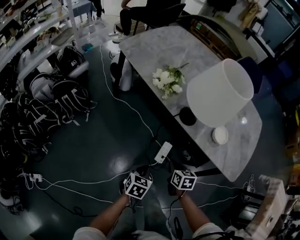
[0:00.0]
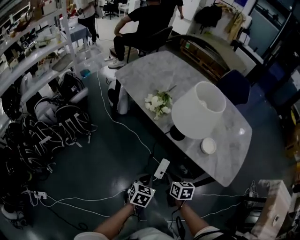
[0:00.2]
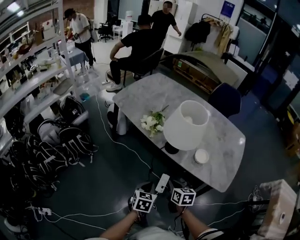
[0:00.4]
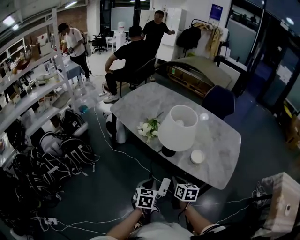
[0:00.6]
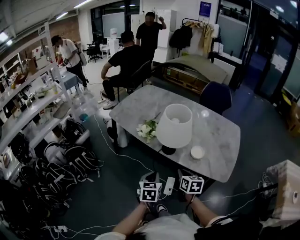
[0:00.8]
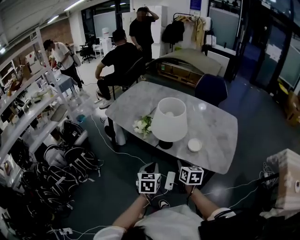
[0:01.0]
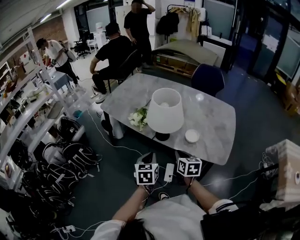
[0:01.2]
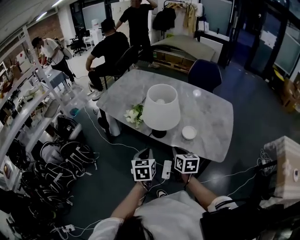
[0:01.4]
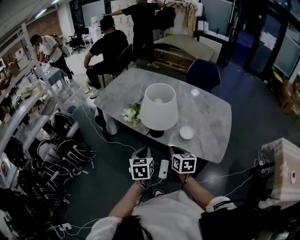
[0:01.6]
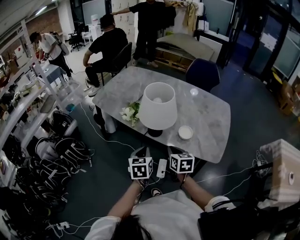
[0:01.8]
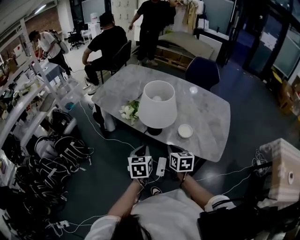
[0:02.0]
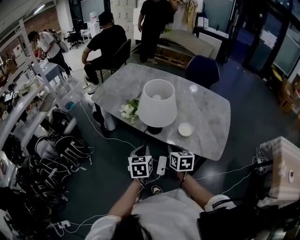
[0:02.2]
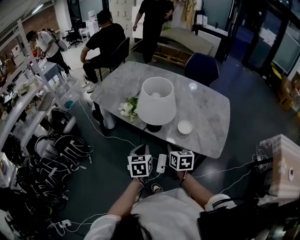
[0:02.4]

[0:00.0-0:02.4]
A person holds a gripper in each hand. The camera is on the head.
0:00.0 to 0:01.2: Both grippers travel together upward, approximately 25 cm. The right gripper changes its angle by about 20 degrees, while the left gripper rotates approximately 20 degrees.
0:01.2 to 0:02.4: There are only small adjustments of the grippers.

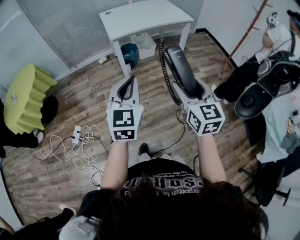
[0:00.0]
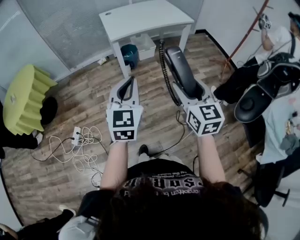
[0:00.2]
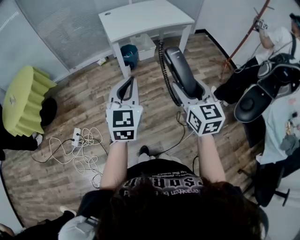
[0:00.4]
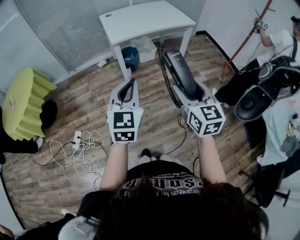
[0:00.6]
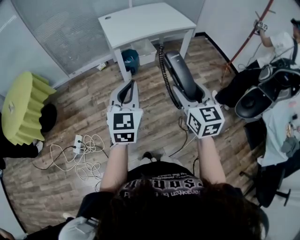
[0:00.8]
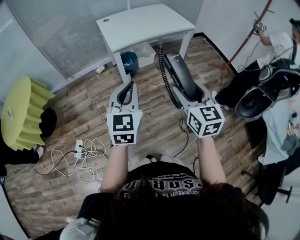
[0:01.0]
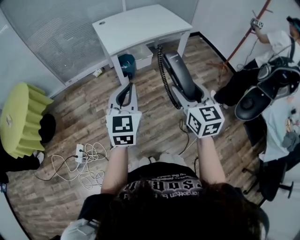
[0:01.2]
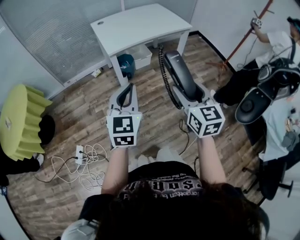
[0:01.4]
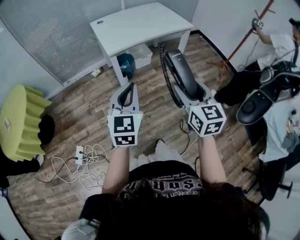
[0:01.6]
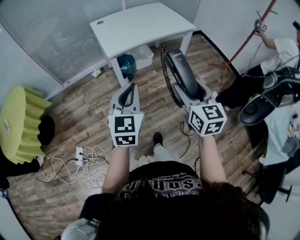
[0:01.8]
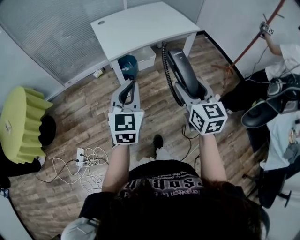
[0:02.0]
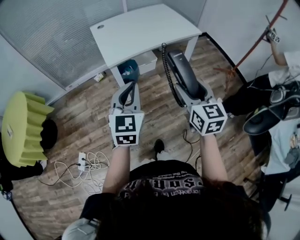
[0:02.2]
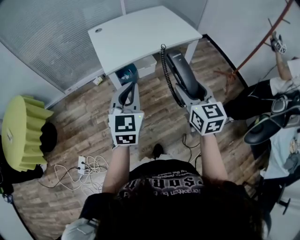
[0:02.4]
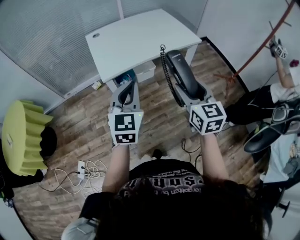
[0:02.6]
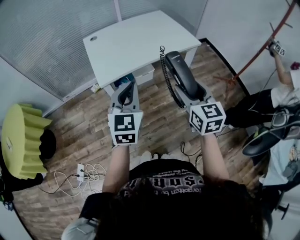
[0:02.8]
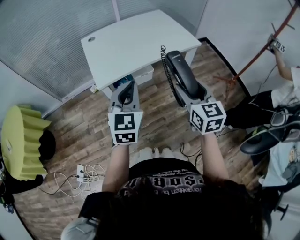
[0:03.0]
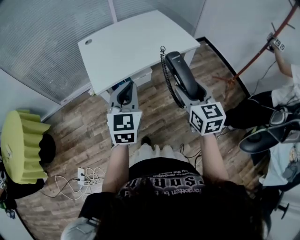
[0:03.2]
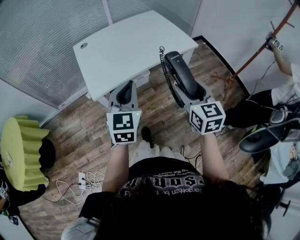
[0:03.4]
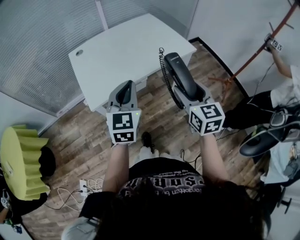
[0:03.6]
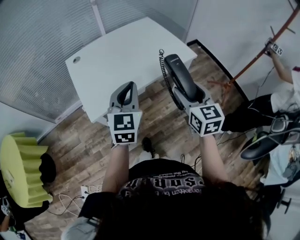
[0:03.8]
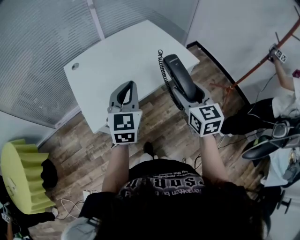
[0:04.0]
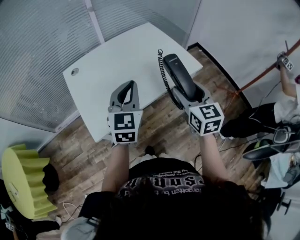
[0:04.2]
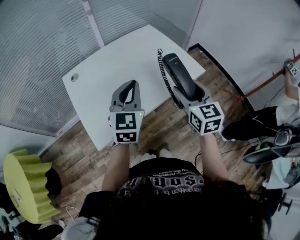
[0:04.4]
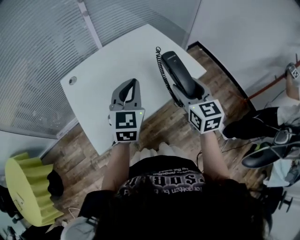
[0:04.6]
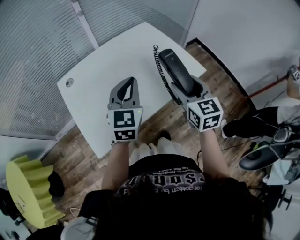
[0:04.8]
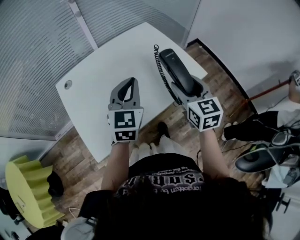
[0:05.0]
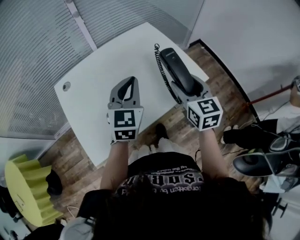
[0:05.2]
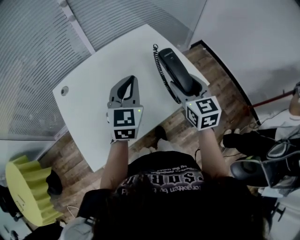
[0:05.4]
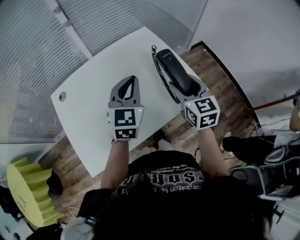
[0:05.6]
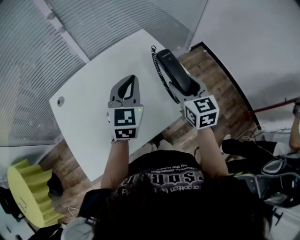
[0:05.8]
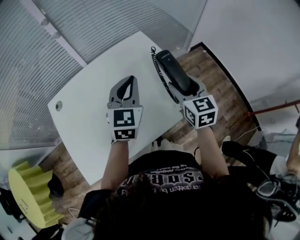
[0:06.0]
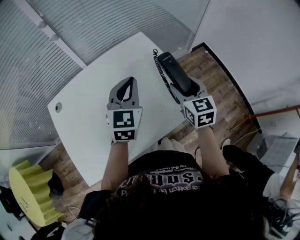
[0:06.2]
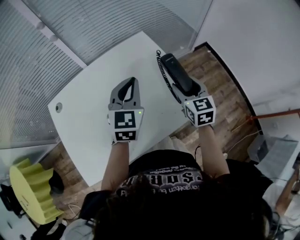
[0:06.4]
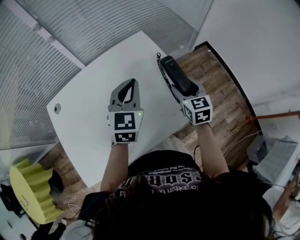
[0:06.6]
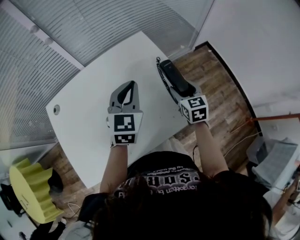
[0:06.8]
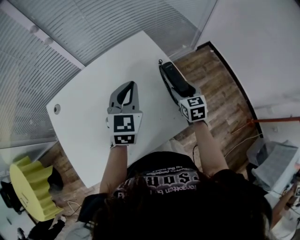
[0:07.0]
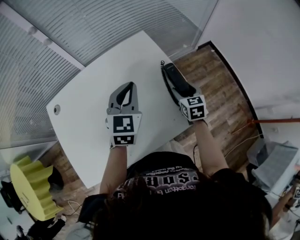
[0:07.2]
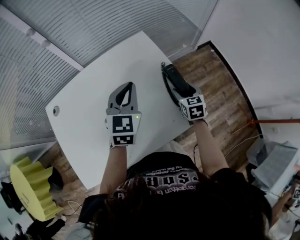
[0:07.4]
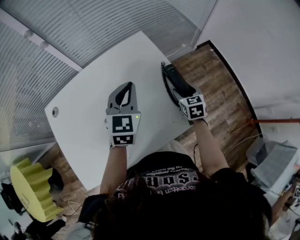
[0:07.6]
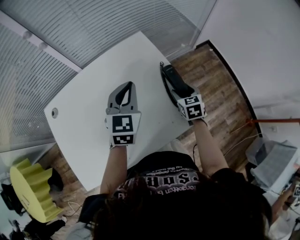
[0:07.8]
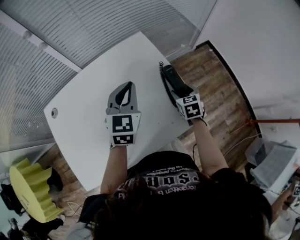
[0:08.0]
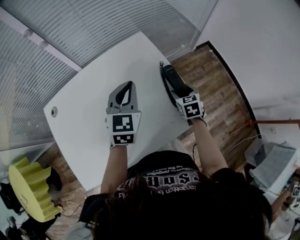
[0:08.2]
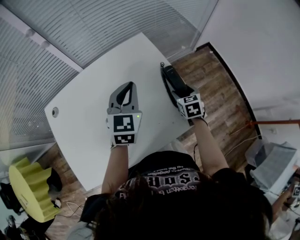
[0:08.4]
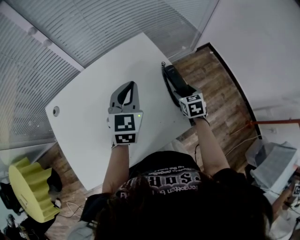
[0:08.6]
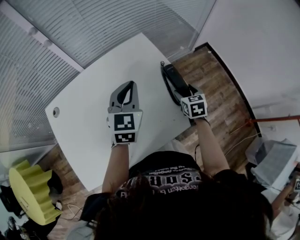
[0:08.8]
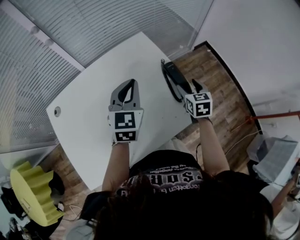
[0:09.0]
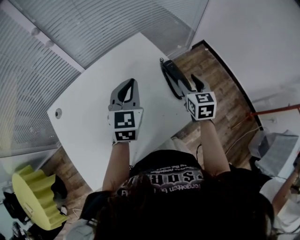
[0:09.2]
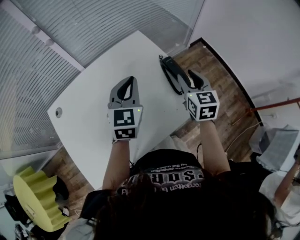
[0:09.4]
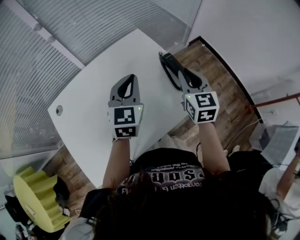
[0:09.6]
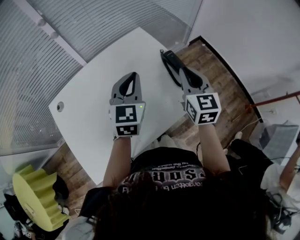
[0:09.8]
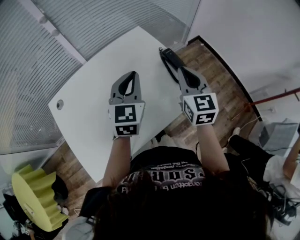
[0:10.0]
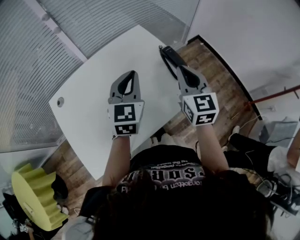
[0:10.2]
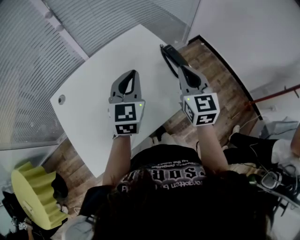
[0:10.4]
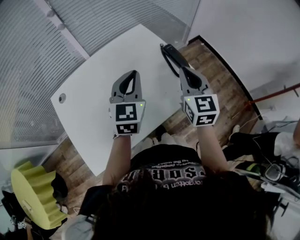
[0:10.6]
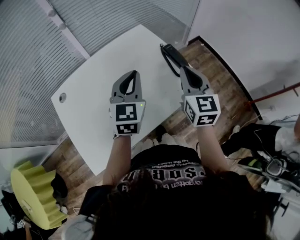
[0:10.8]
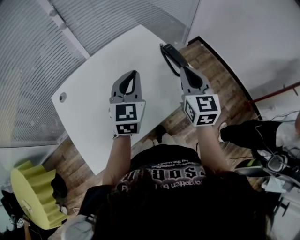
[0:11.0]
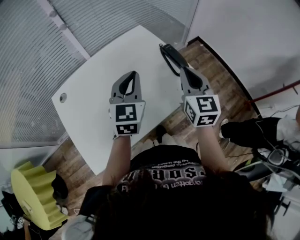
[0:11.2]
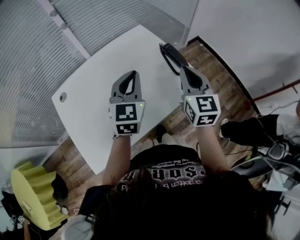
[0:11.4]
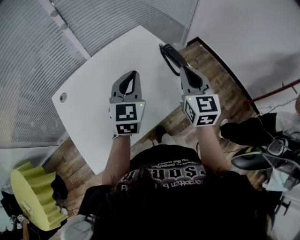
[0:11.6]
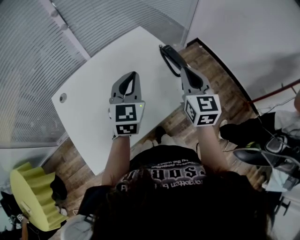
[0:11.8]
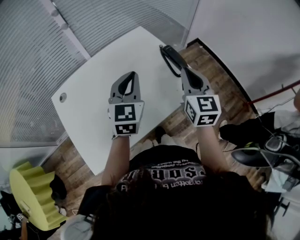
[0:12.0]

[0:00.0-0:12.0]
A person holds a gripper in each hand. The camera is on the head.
0:00.0 to 0:01.6: The left gripper goes some 15 cm forward and to the left. The right gripper goes some 15 cm forward.
0:01.6 to 0:03.0: The grippers both shift forward by roughly 30 cm.
0:03.0 to 0:04.4: Both grippers travel together forward, roughly 30 cm.
0:04.4 to 0:06.0: Both grippers travel together forward, roughly 25 cm.
0:06.0 to 0:07.6: The right gripper moves downward and forward, about 20 cm, while the left gripper heads forward, covering approximately 5 cm.
0:07.6 to 0:09.0: The right gripper moves upward, approximately 5 cm.
0:09.0 to 0:10.4: The left gripper heads backward, covering some 10 cm, while the right gripper is displaced upward, backward and to the left by roughly 25 cm, rotates approximately 30 degrees, and closes.
0:10.4 to 0:12.0: The grippers move only a little.

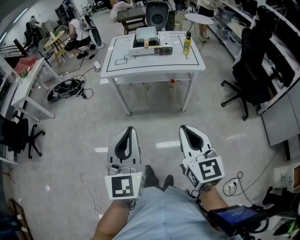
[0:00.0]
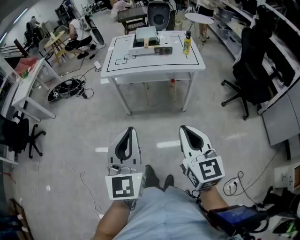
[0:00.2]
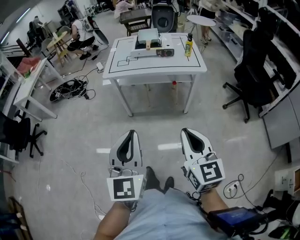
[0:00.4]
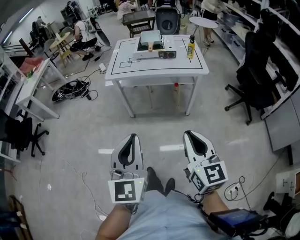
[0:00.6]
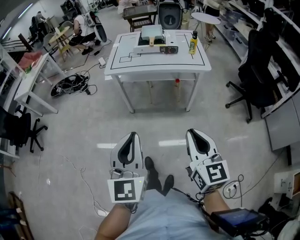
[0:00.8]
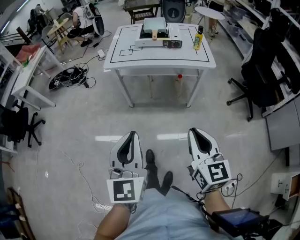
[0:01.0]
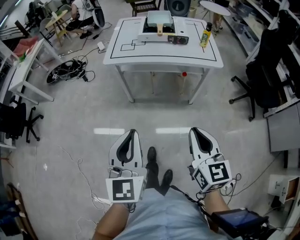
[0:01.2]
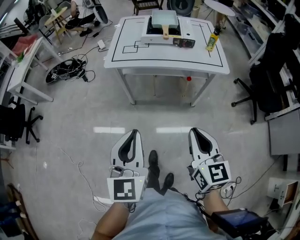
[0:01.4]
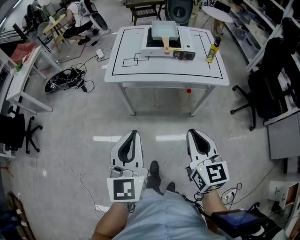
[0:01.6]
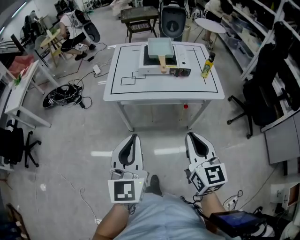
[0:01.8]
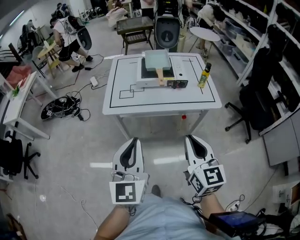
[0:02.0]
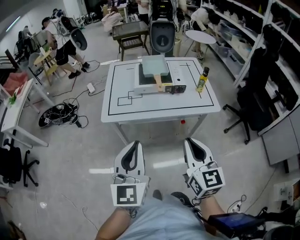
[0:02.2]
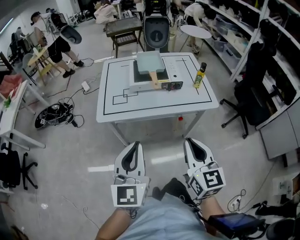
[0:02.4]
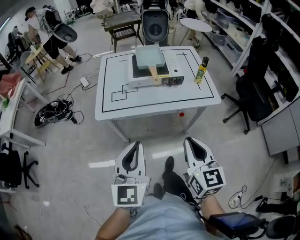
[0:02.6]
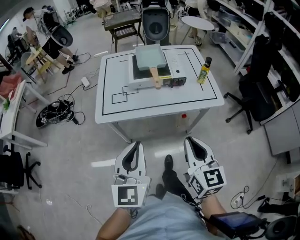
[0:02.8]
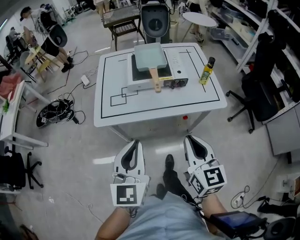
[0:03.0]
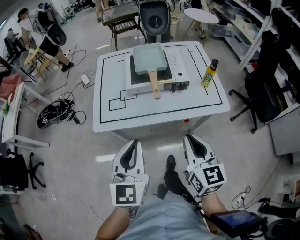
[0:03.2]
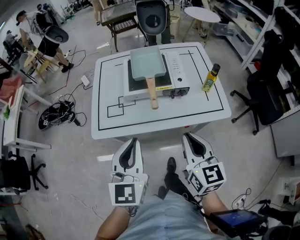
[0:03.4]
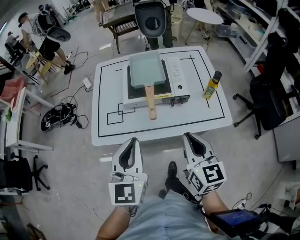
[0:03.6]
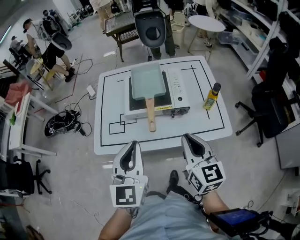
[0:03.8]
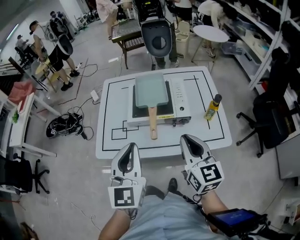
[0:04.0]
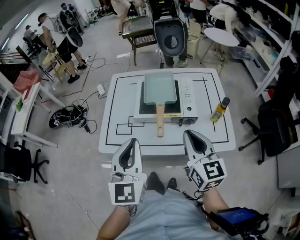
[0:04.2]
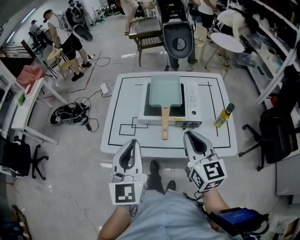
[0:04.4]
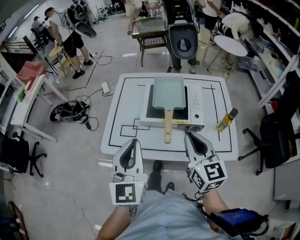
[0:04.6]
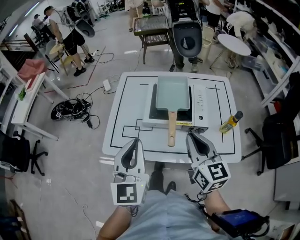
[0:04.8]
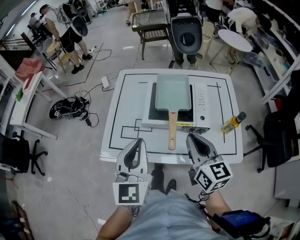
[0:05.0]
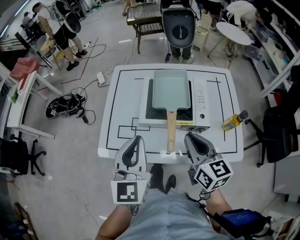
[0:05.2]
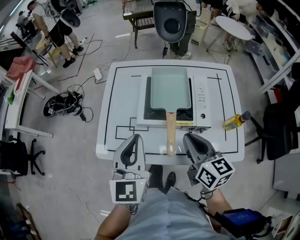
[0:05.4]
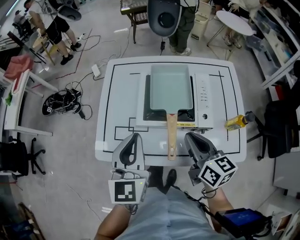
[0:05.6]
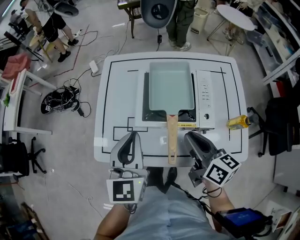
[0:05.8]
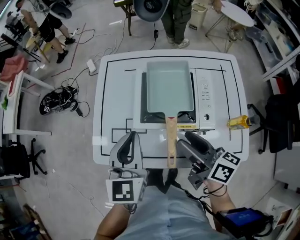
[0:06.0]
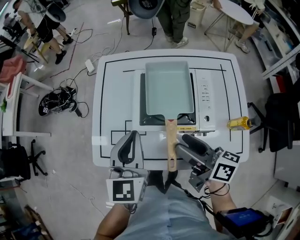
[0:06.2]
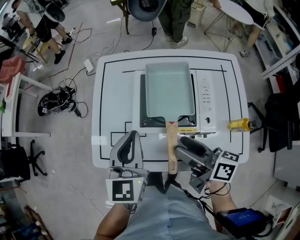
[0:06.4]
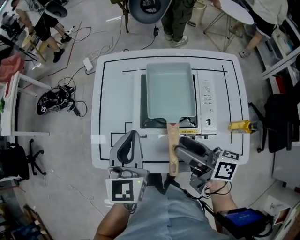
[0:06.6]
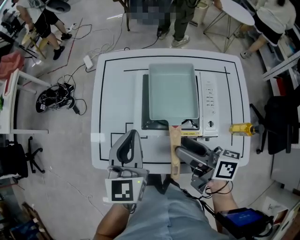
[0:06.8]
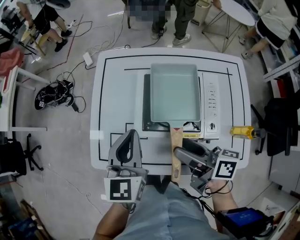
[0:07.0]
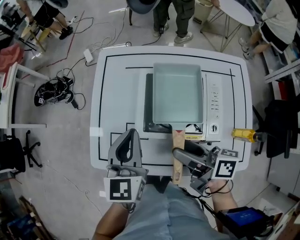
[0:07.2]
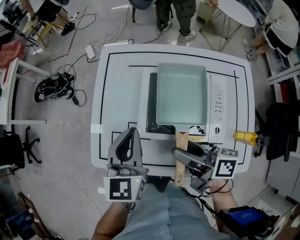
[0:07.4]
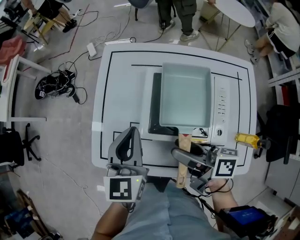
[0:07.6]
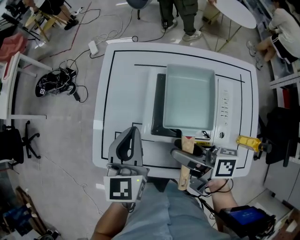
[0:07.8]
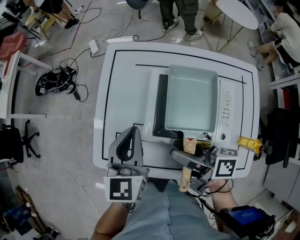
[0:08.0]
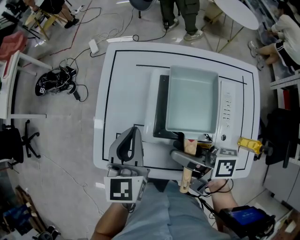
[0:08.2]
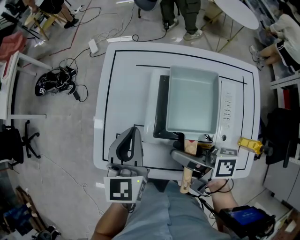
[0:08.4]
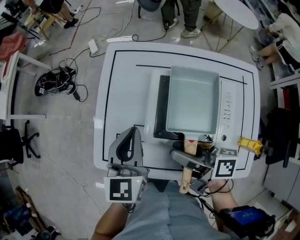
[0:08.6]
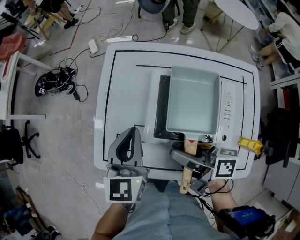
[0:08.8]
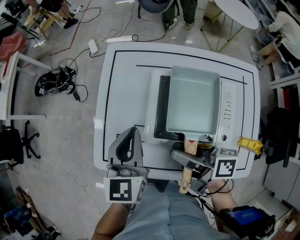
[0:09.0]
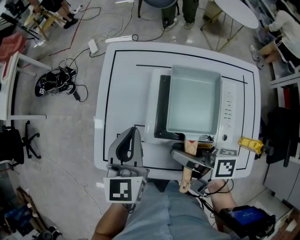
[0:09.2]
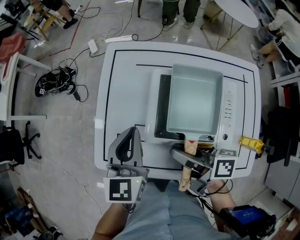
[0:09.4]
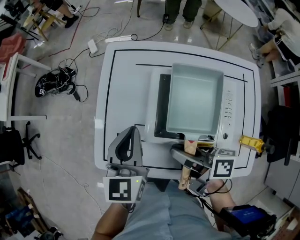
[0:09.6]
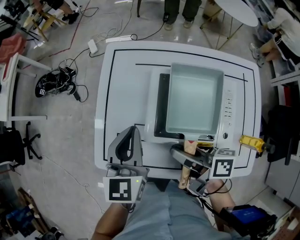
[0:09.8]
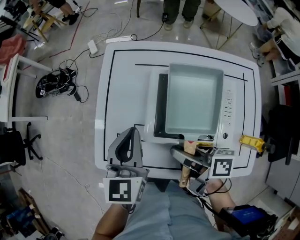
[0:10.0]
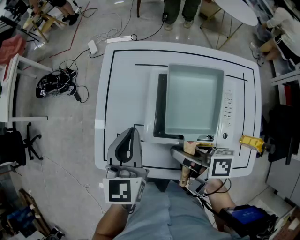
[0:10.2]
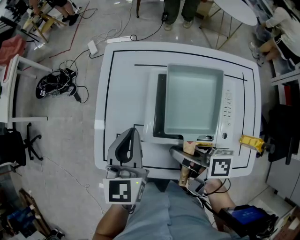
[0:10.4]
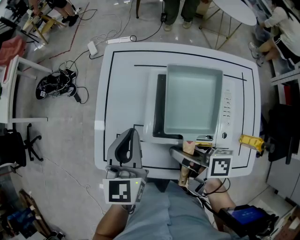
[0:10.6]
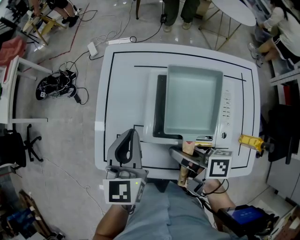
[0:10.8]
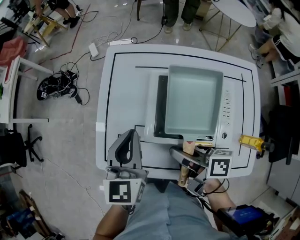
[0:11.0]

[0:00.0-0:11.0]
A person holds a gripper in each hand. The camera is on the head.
0:00.0 to 0:01.6: The grippers both shift forward by approximately 25 cm.
0:01.6 to 0:03.2: Both grippers move forward, roughly 25 cm.
0:03.2 to 0:04.8: Both grippers travel together forward, roughly 20 cm.
0:04.8 to 0:06.2: The two grippers go approximately 15 cm forward and downward. The right gripper twists about 40 degrees clockwise, seen from behind, and opens.
0:06.2 to 0:07.8: The two grippers go approximately 10 cm forward. The right gripper changes its angle by approximately 20 degrees.
0:07.8 to 0:09.4: The grippers stay close to where they were, moving slightly.
0:09.4 to 0:11.0: The right gripper closes up.
